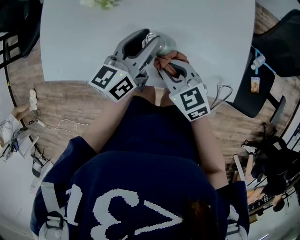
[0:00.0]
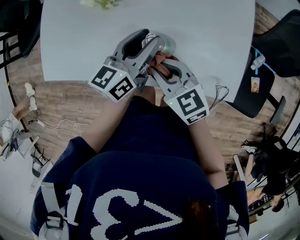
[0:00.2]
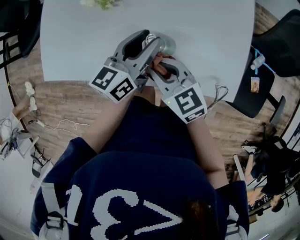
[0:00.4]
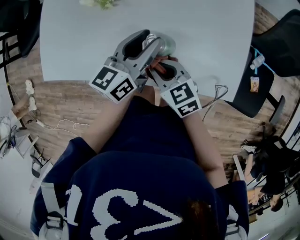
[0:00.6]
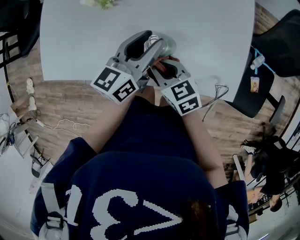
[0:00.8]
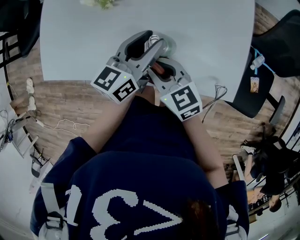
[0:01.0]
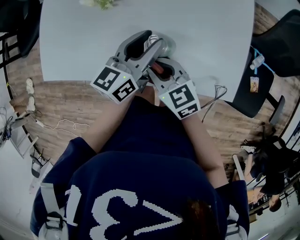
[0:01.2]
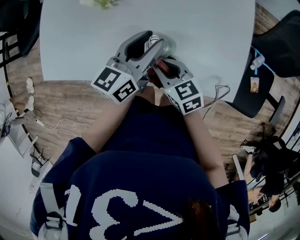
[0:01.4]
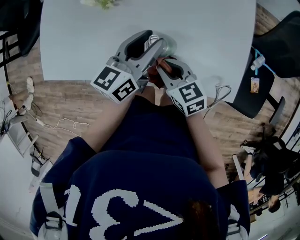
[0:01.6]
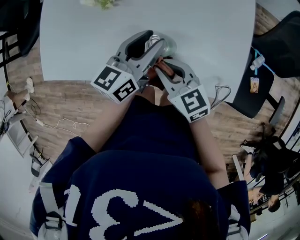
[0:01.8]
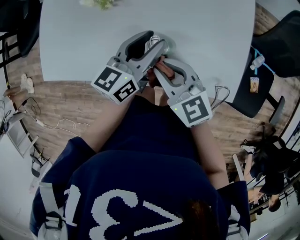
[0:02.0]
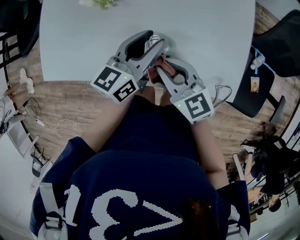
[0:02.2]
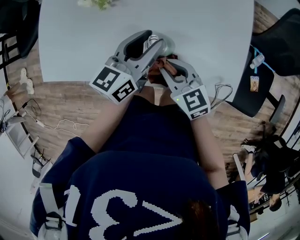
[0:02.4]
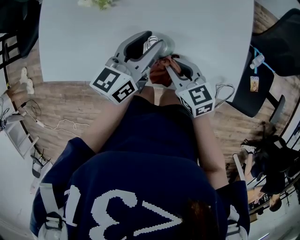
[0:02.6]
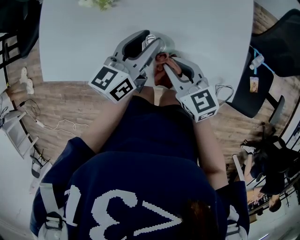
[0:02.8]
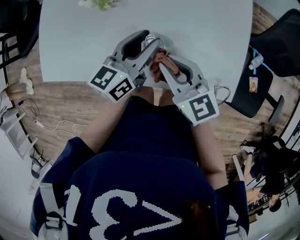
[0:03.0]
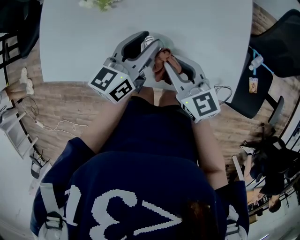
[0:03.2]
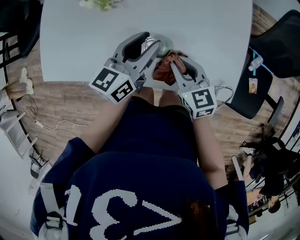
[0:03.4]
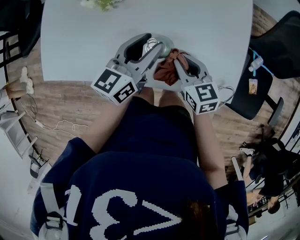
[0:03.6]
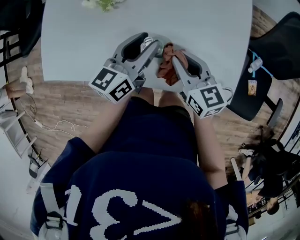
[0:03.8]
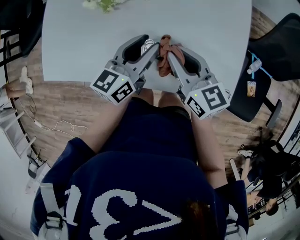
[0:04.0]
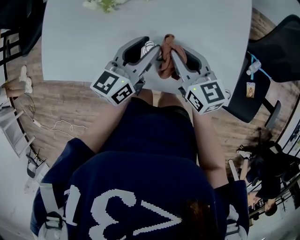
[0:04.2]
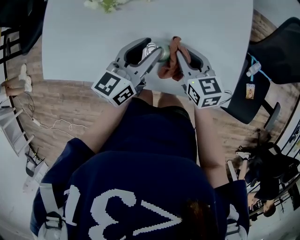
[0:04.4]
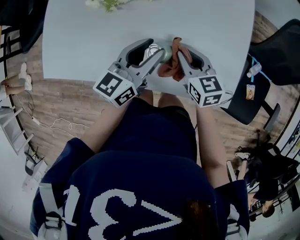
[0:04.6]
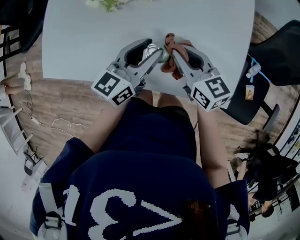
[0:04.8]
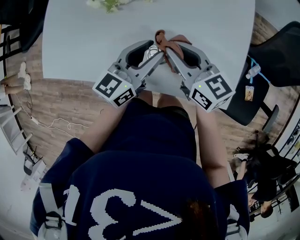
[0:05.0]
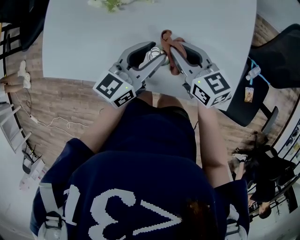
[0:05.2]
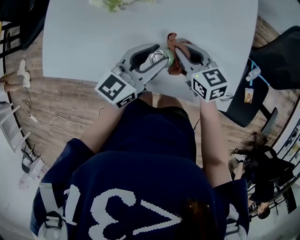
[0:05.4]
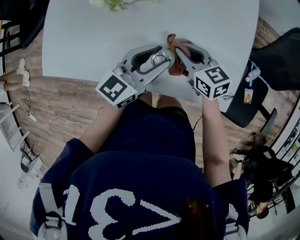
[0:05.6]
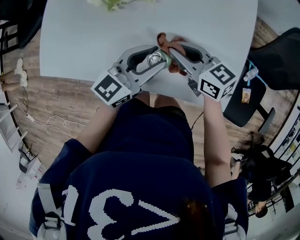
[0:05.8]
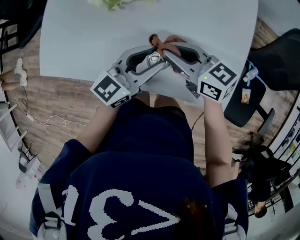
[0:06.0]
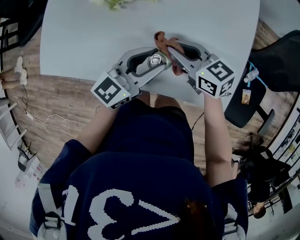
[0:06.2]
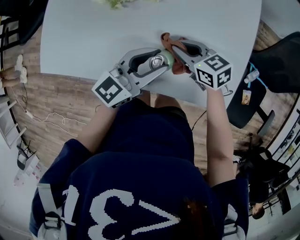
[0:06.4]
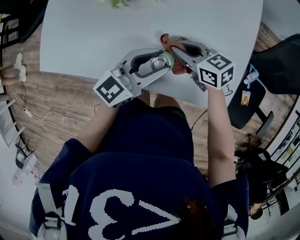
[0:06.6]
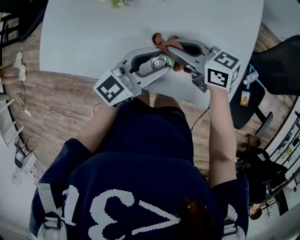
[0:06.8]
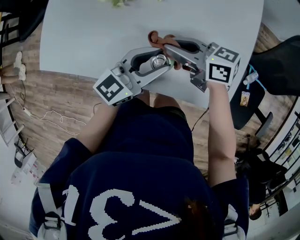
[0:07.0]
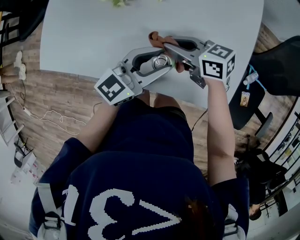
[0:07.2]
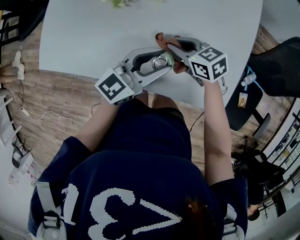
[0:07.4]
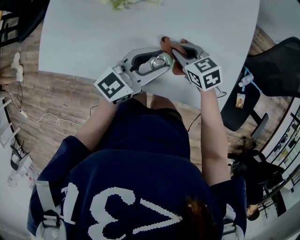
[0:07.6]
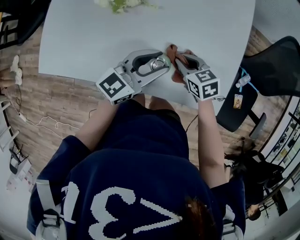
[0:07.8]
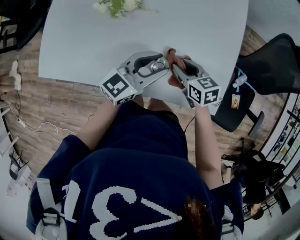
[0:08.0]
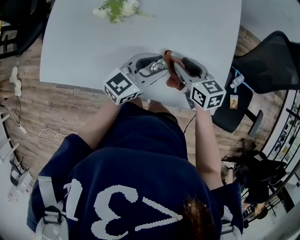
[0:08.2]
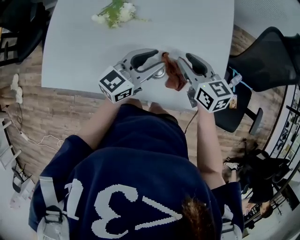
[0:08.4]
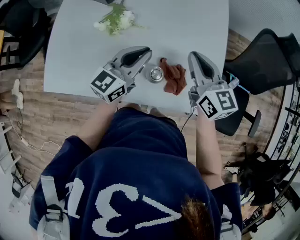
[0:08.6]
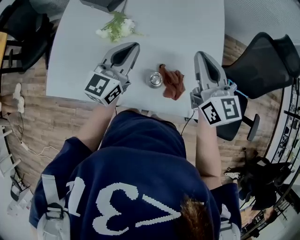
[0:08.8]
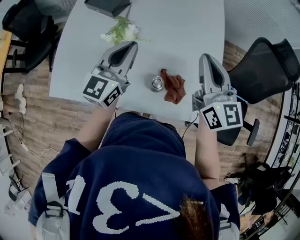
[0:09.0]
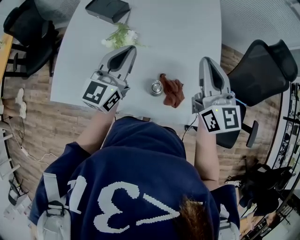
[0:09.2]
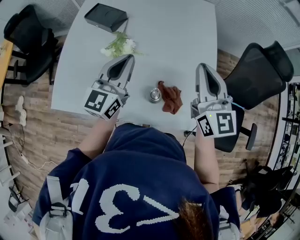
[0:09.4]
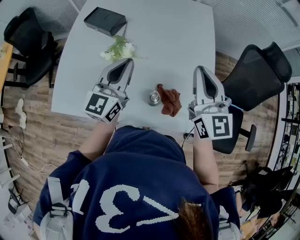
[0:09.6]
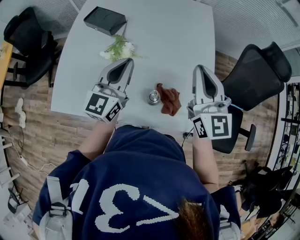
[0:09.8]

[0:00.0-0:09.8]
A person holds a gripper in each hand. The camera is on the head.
0:00.0 to 0:01.4: The right gripper goes up and down, about 5 cm each way, reversing 3 times.
0:01.4 to 0:02.8: The right gripper goes up and down, approximately 10 cm each way, reversing 2 times.
0:02.8 to 0:04.2: The right gripper swings up and down, approximately 10 cm each way, with 2 reversals.
0:04.2 to 0:05.6: The right gripper goes up and down, roughly 10 cm each way, reversing 2 times.
0:05.6 to 0:07.0: The right gripper moves up and down over approximately 10 cm, changing direction 2 times, and swivels some 30 degrees.
0:07.0 to 0:08.4: The right gripper goes downward and returns, some 10 cm each way, and rotates about 40 degrees.
0:08.4 to 0:09.8: The right gripper heads upward, covering about 20 cm, changes its angle by approximately 40 degrees, and closes; the left gripper moves upward and to the left, roughly 15 cm, swivels about 30 degrees, and closes.

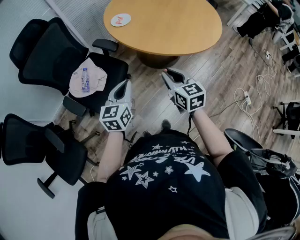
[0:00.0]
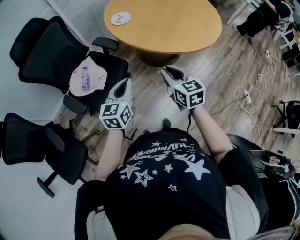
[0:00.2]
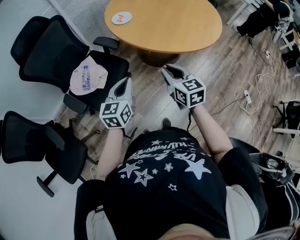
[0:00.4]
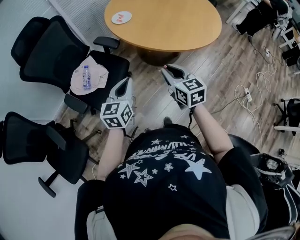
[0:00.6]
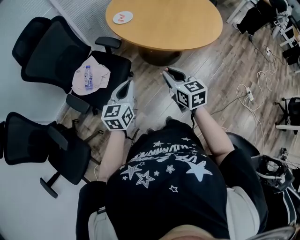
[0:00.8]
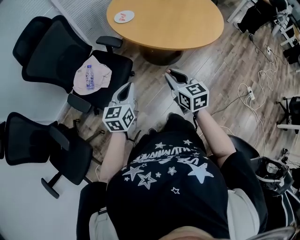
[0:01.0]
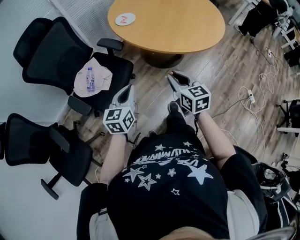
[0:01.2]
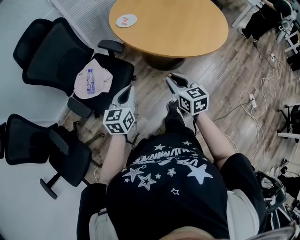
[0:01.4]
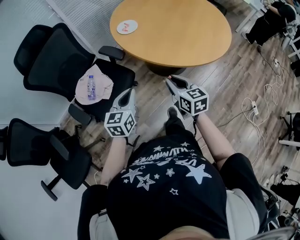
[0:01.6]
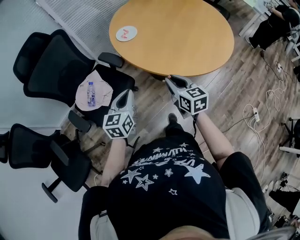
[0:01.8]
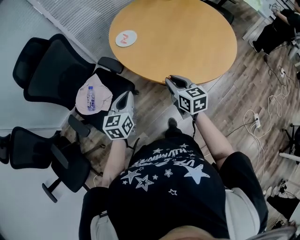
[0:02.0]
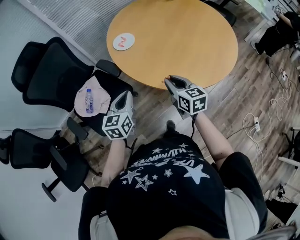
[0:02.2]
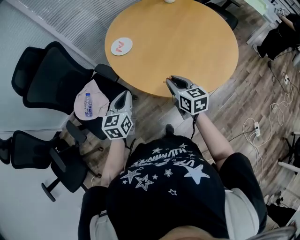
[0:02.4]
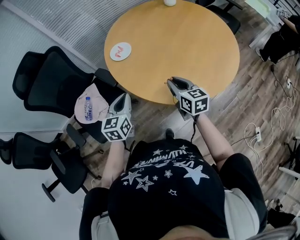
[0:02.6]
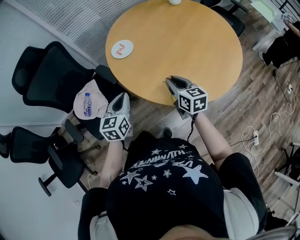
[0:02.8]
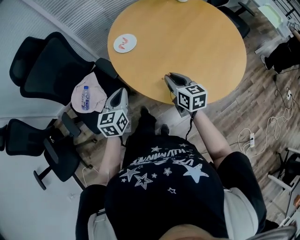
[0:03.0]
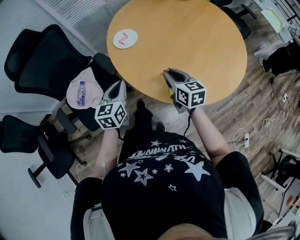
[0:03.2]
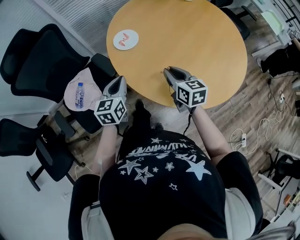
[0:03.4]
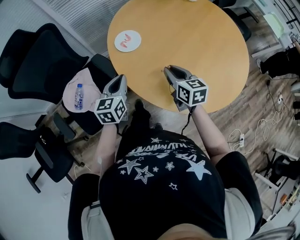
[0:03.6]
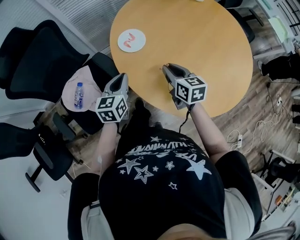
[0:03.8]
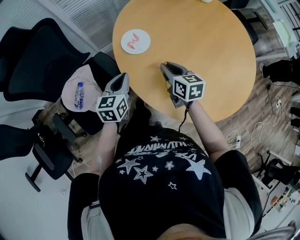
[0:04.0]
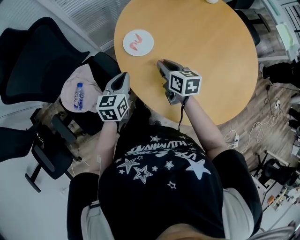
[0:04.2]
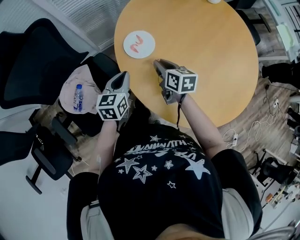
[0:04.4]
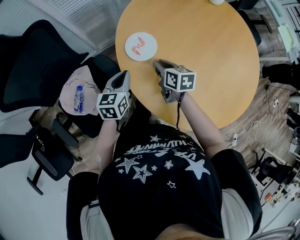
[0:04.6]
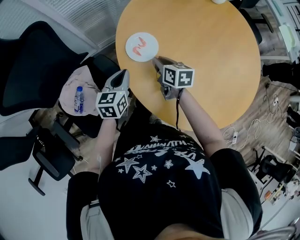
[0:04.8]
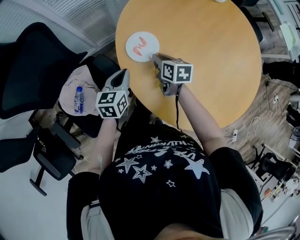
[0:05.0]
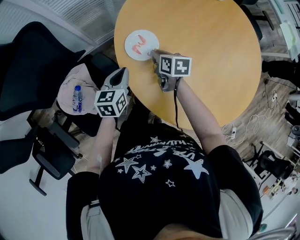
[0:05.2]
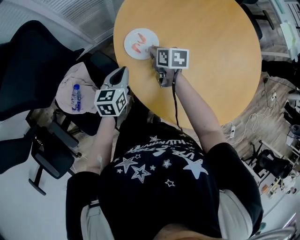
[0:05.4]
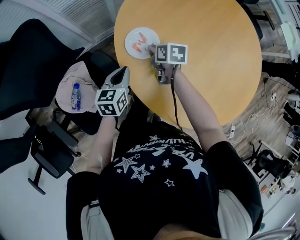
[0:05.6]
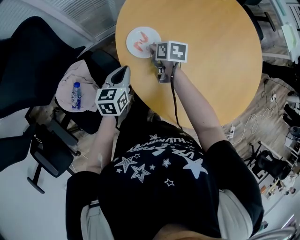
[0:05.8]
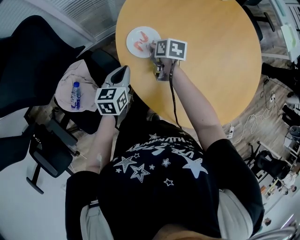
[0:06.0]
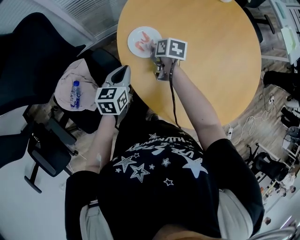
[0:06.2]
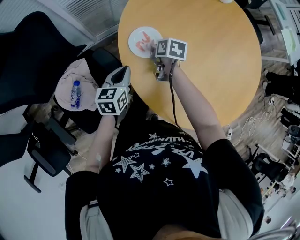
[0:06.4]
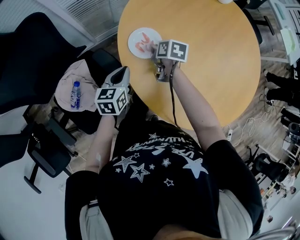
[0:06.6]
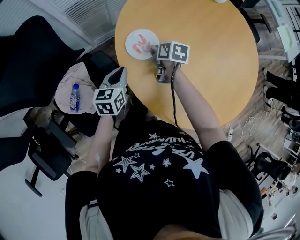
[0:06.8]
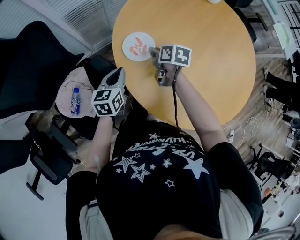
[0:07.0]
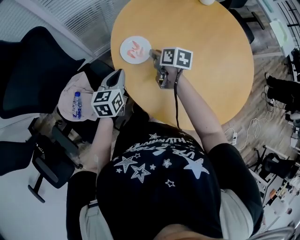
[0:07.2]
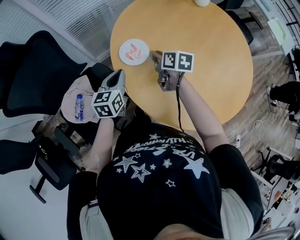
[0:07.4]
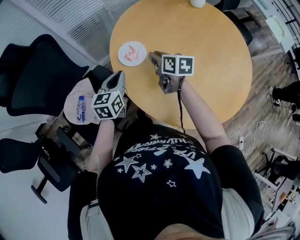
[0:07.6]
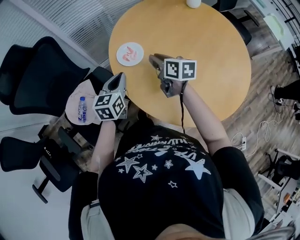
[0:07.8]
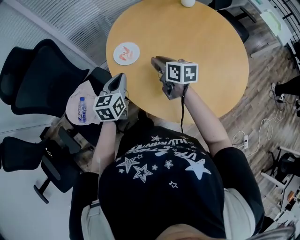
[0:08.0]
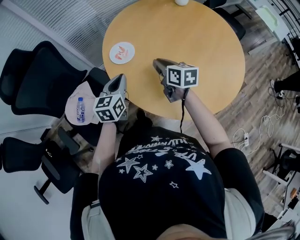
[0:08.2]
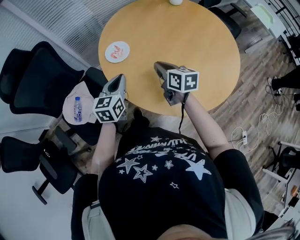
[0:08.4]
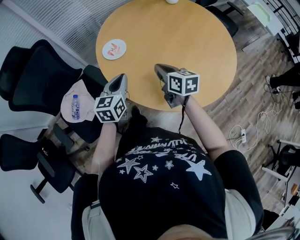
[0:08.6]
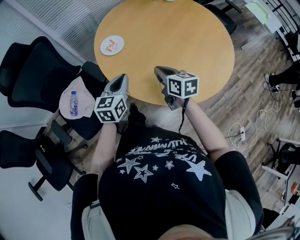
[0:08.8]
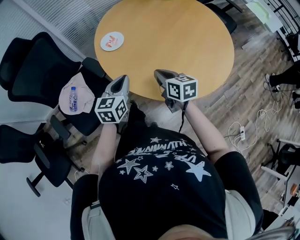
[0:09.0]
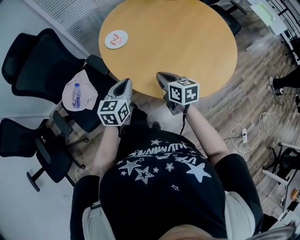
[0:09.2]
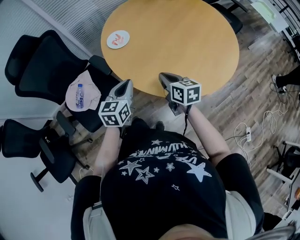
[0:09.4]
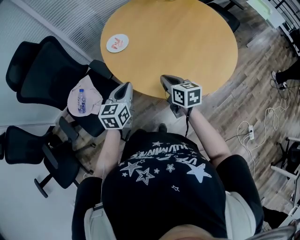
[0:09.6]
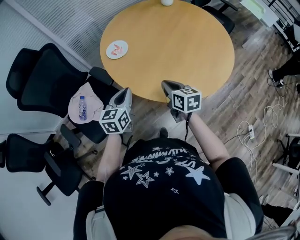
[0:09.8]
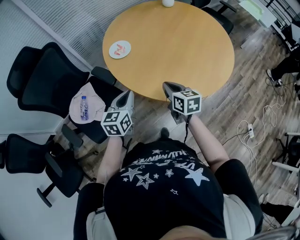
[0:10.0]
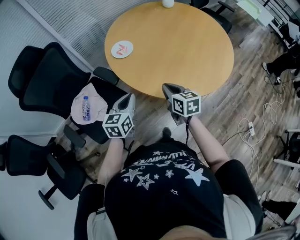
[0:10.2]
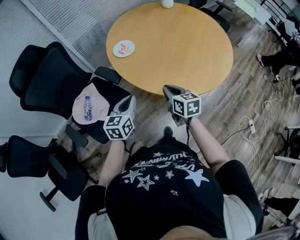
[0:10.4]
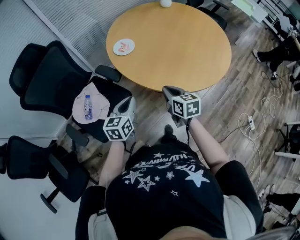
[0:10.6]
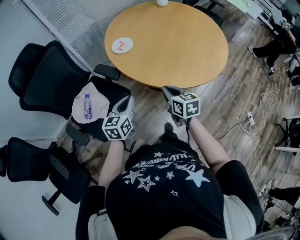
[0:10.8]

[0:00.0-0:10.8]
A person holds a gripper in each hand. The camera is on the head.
0:00.0 to 0:01.6: The left gripper moves approximately 5 cm. Meanwhile the right gripper moves forward, some 5 cm.
0:01.6 to 0:03.0: The two grippers go some 25 cm forward and to the right.
0:03.0 to 0:04.6: The right gripper heads forward, to the left and downward, covering about 30 cm; the left gripper heads forward and downward, covering about 25 cm.
0:04.6 to 0:06.2: The right gripper travels forward and downward by some 10 cm, and changes its angle by about 20 degrees.
0:06.2 to 0:07.8: The right gripper goes roughly 20 cm upward and backward, and changes its angle by some 30 degrees; the left gripper is displaced upward by approximately 10 cm.
0:07.8 to 0:09.2: The left gripper goes some 20 cm backward and to the right. Meanwhile the right gripper goes roughly 25 cm backward, and closes up.
0:09.2 to 0:10.8: The right gripper is displaced backward and to the left by some 15 cm, while the left gripper shifts approximately 15 cm to the left and backward.

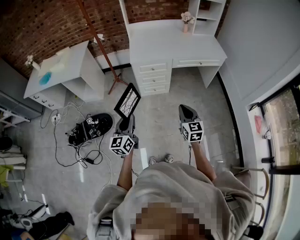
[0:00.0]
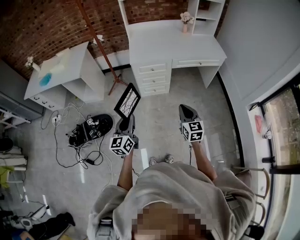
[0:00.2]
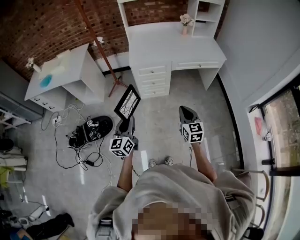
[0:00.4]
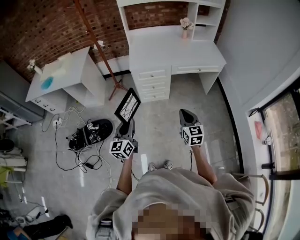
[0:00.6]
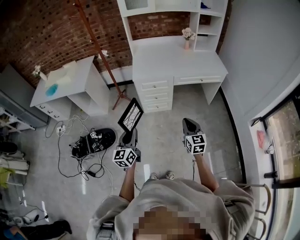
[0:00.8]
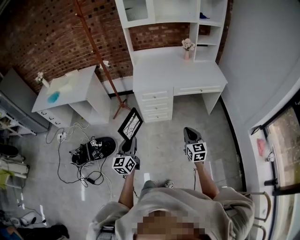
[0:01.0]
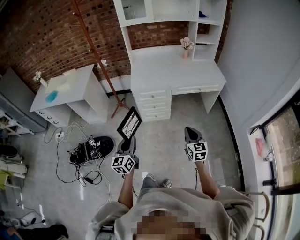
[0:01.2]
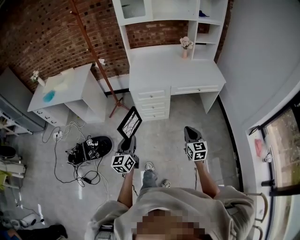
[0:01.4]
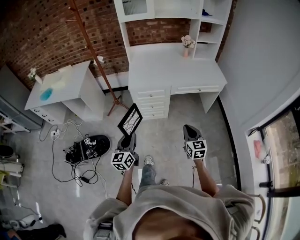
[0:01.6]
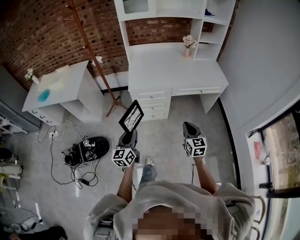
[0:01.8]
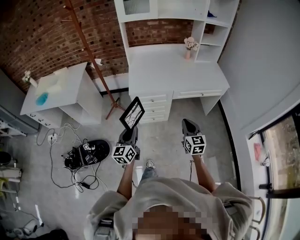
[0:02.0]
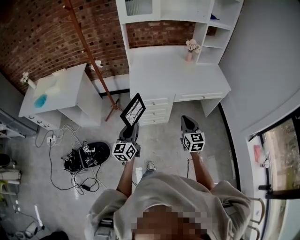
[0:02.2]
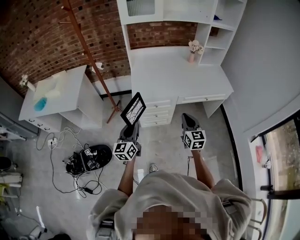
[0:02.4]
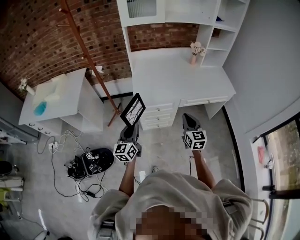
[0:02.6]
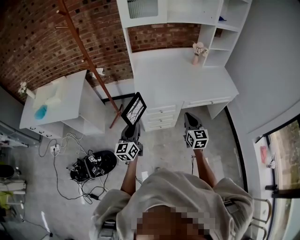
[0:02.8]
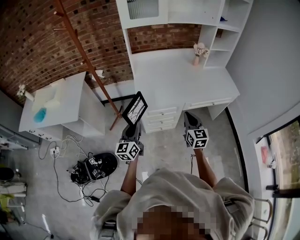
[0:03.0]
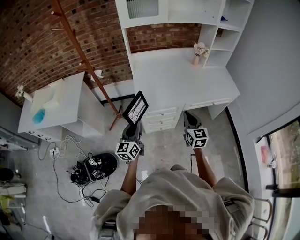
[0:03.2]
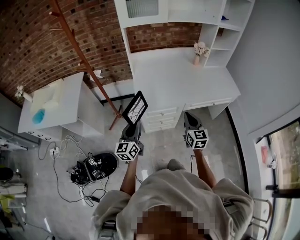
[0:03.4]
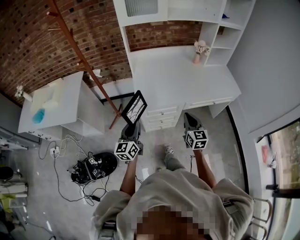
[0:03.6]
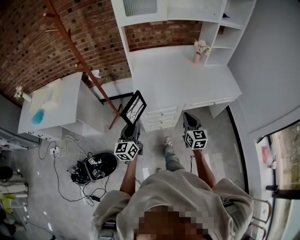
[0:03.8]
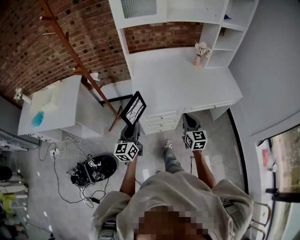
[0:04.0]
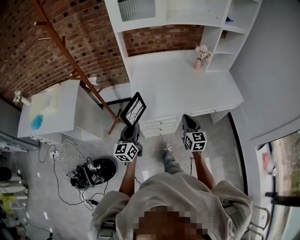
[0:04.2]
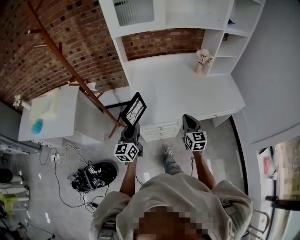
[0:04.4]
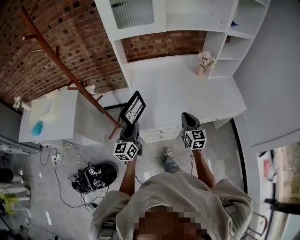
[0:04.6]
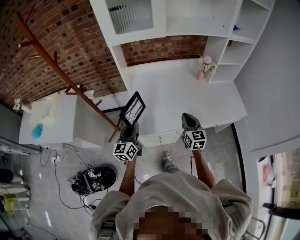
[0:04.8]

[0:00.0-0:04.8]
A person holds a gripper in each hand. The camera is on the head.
0:00.0 to 0:01.6: The grippers both shift forward and to the right by about 10 cm.
0:01.6 to 0:03.2: The left gripper travels forward by some 30 cm. The right gripper is displaced forward and to the left by some 35 cm.
0:03.2 to 0:04.8: The grippers both shift forward by roughly 20 cm.
